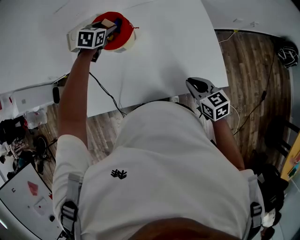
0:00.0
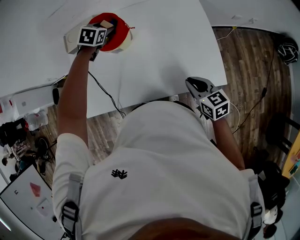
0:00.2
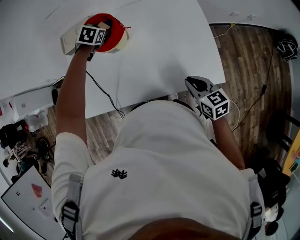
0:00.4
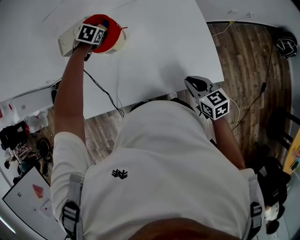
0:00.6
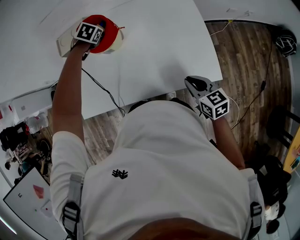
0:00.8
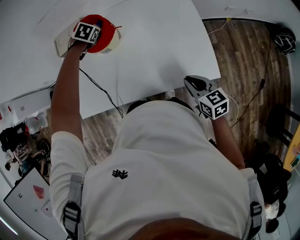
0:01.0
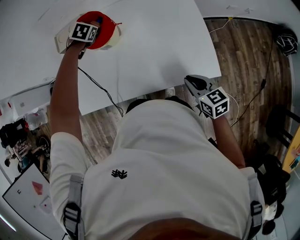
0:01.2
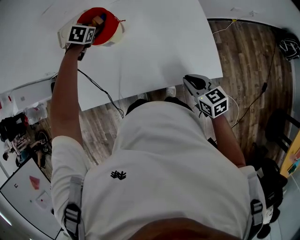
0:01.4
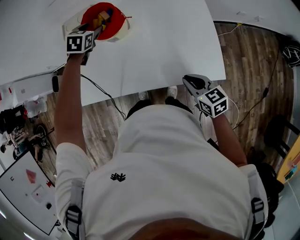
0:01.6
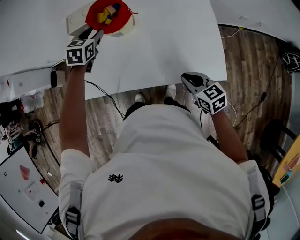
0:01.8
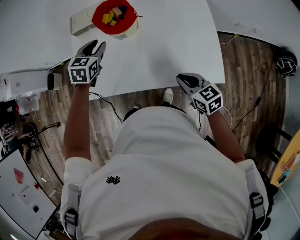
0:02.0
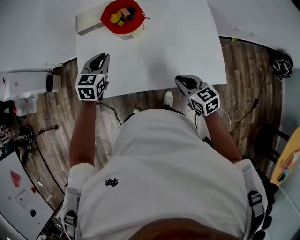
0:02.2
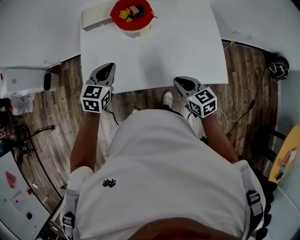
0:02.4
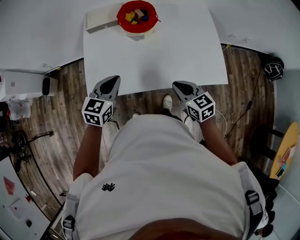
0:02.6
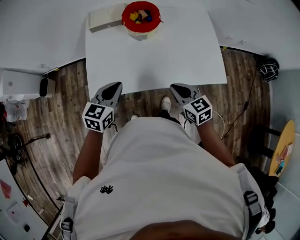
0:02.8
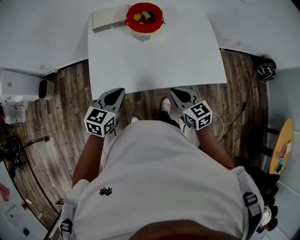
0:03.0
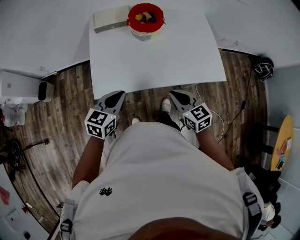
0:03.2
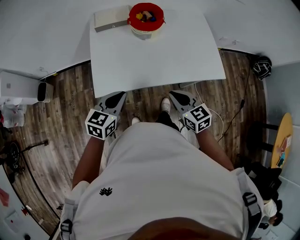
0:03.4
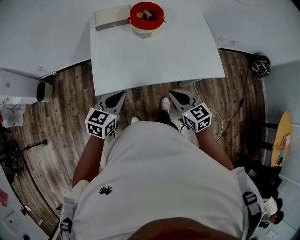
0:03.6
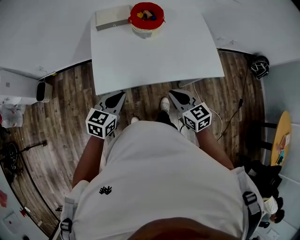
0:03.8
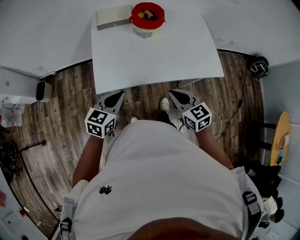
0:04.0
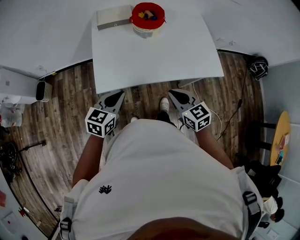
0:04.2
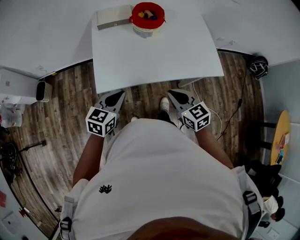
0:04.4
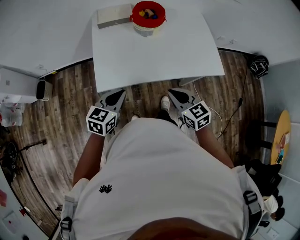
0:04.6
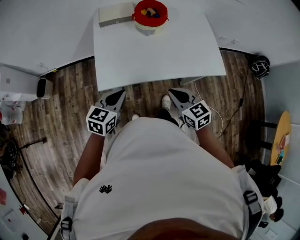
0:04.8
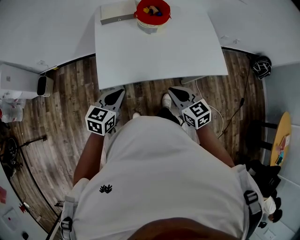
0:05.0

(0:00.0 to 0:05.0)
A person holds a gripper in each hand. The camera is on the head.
0:00.0 - 0:01.6: The left gripper moves about 5 cm.
0:01.6 - 0:03.4: The left gripper moves backward and to the left, approximately 40 cm, changes its angle by some 40 degrees, and closes up. The right gripper heads to the left, covering roughly 25 cm.
0:03.4 - 0:05.0: There are only small adjustments of the grippers.

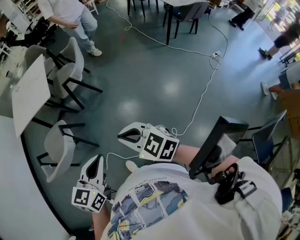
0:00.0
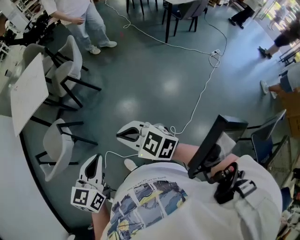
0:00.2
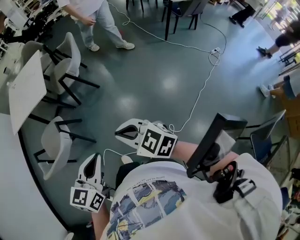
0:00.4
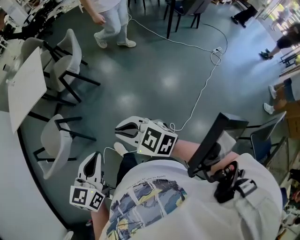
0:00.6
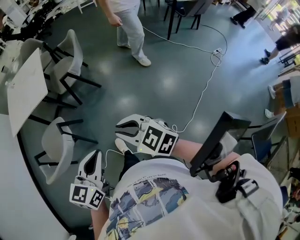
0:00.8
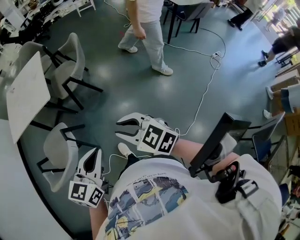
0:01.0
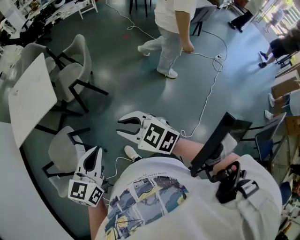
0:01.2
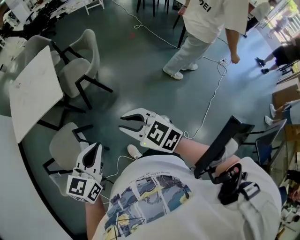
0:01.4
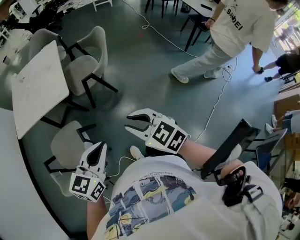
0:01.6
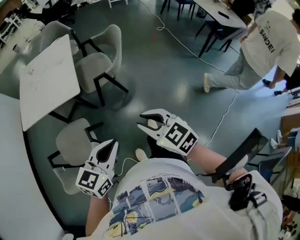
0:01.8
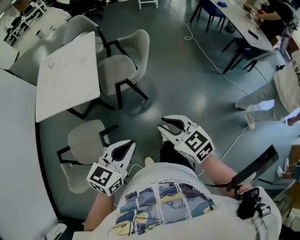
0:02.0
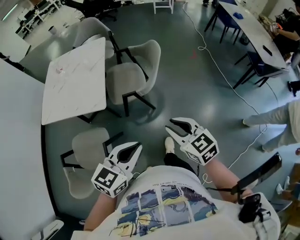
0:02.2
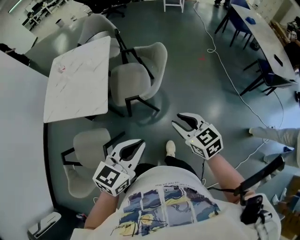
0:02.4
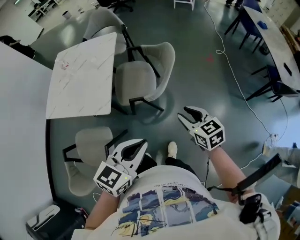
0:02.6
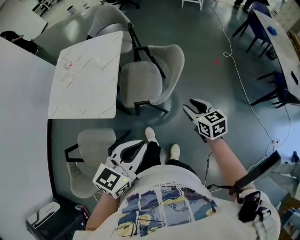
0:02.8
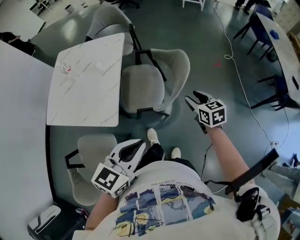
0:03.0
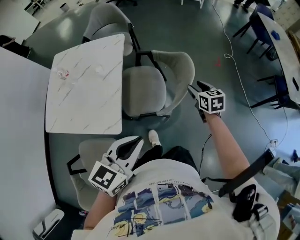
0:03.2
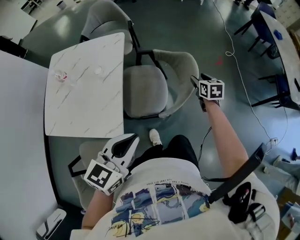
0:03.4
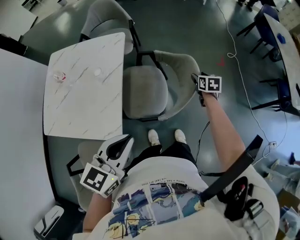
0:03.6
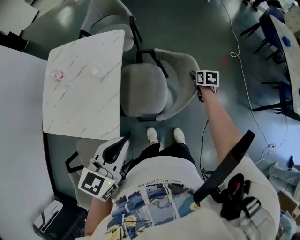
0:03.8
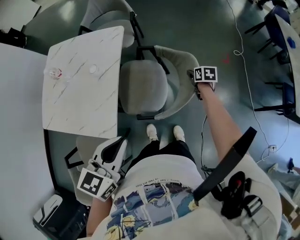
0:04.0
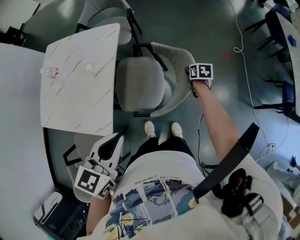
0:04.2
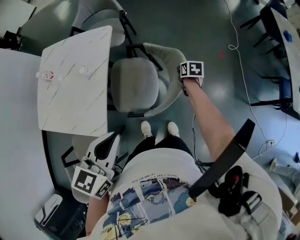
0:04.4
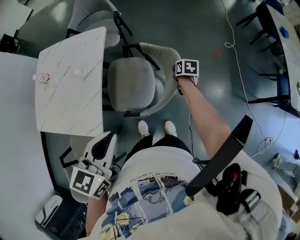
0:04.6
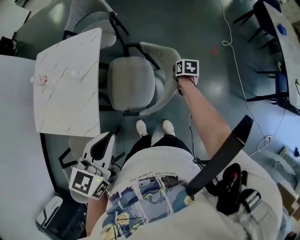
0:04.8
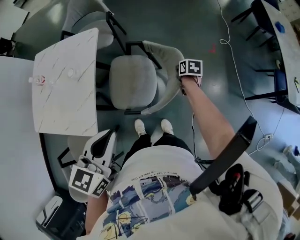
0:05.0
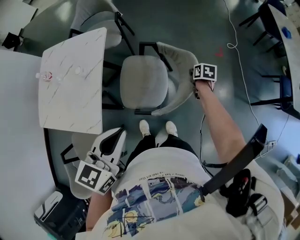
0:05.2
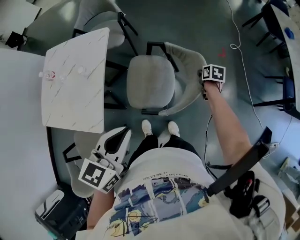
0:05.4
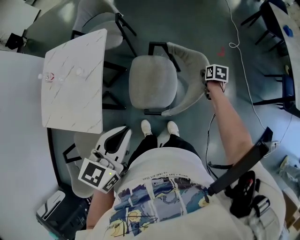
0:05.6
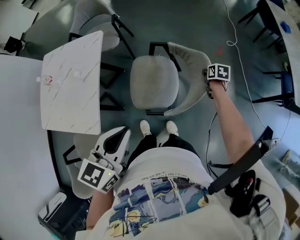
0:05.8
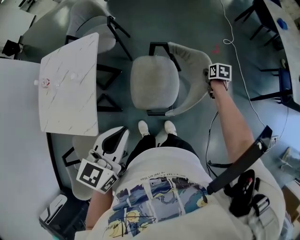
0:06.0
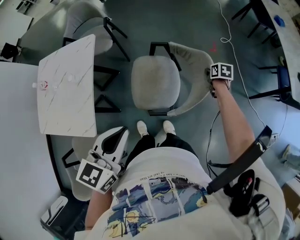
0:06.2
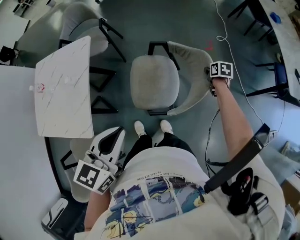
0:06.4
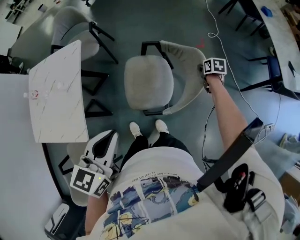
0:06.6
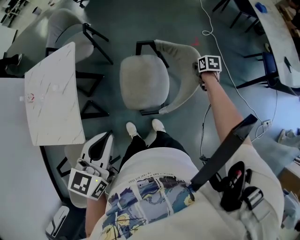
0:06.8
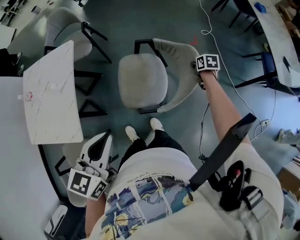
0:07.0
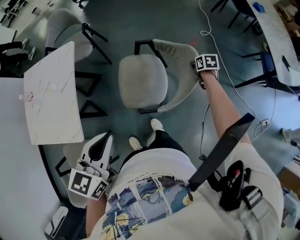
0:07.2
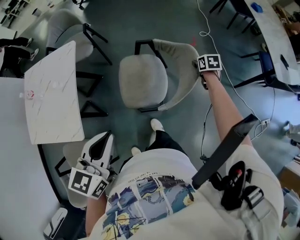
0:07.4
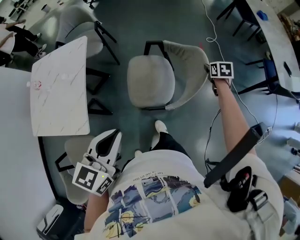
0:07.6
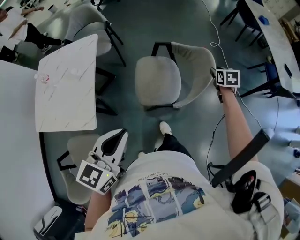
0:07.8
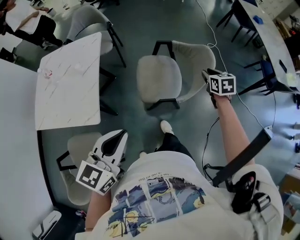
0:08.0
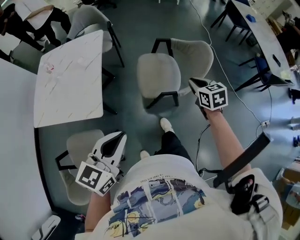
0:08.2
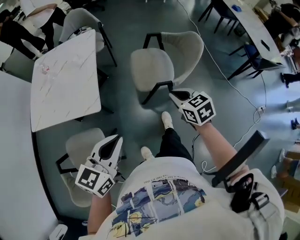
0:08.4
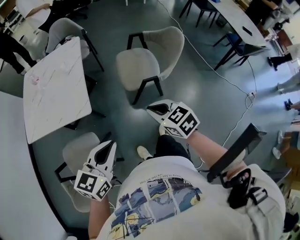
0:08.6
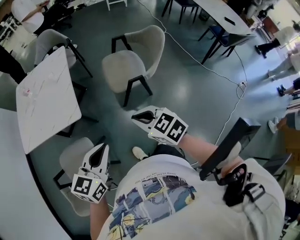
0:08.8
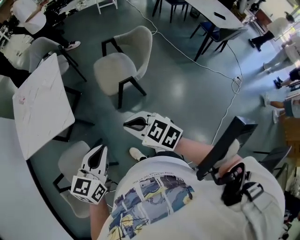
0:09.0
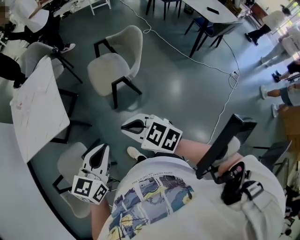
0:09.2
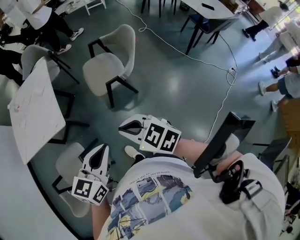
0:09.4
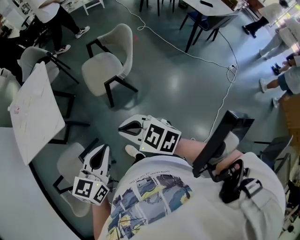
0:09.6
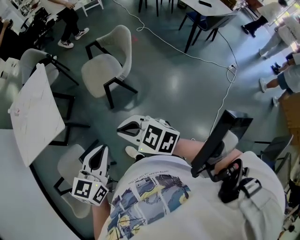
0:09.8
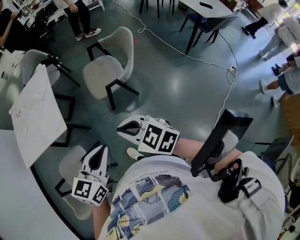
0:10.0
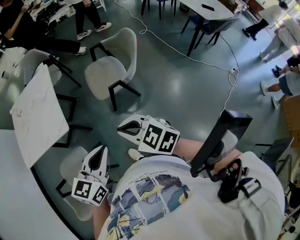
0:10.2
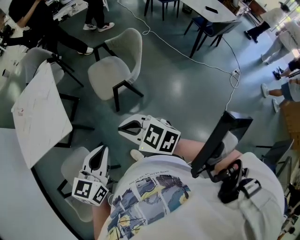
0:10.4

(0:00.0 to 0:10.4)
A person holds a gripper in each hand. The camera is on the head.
0:00.0 - 0:01.4: The grippers both shift forward and to the left by about 25 cm.
0:01.4 - 0:03.0: The two grippers travel together, forward, roughly 50 cm.
0:03.0 - 0:04.4: The right gripper moves forward and downward, approximately 30 cm, and rotates about 30 degrees. Meanwhile the left gripper is displaced forward by about 15 cm.
0:04.4 - 0:06.0: The right gripper travels to the right by some 25 cm; the left gripper moves to the right, approximately 15 cm.
0:06.0 - 0:07.4: The right gripper goes some 5 cm to the right.
0:07.4 - 0:09.0: The right gripper moves backward, to the left and upward, about 80 cm, swivels some 50 degrees, and closes its fingers. Meanwhile the left gripper goes about 35 cm backward.
0:09.0 - 0:10.4: The left gripper is displaced to the right by some 5 cm.

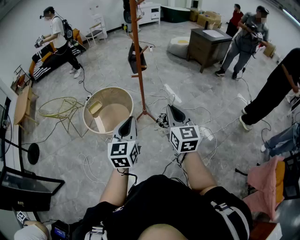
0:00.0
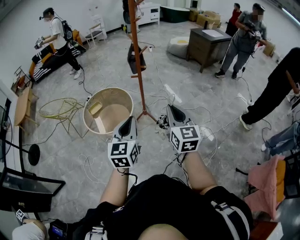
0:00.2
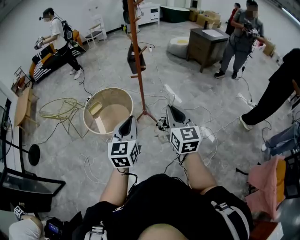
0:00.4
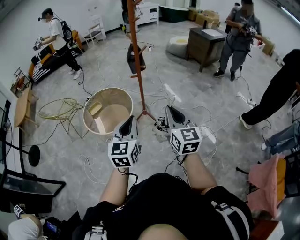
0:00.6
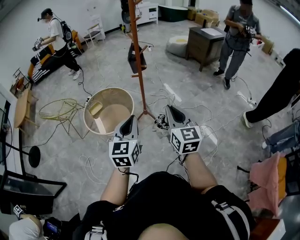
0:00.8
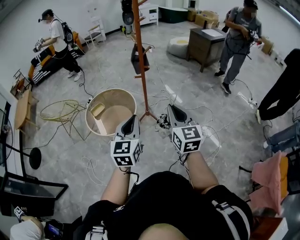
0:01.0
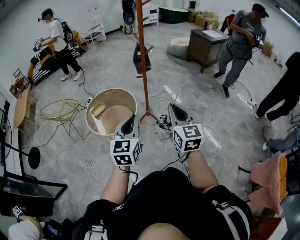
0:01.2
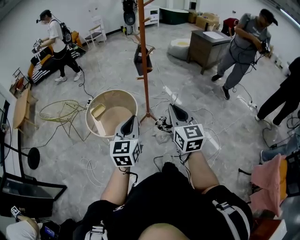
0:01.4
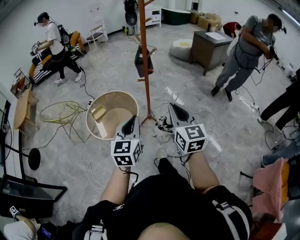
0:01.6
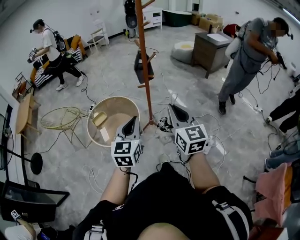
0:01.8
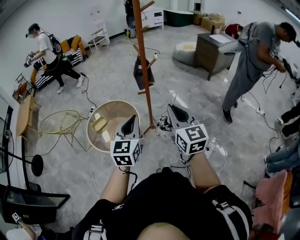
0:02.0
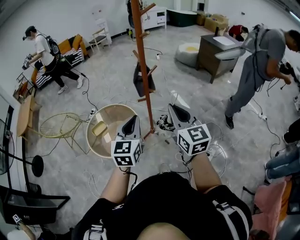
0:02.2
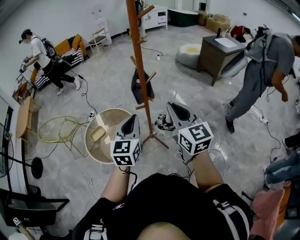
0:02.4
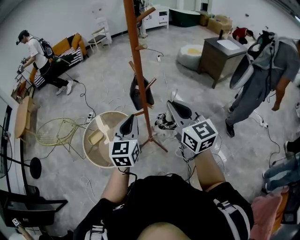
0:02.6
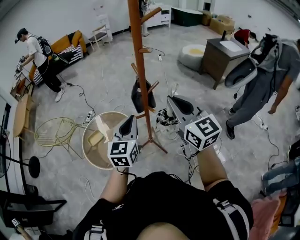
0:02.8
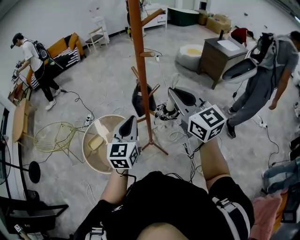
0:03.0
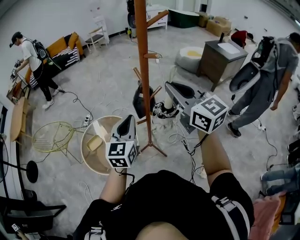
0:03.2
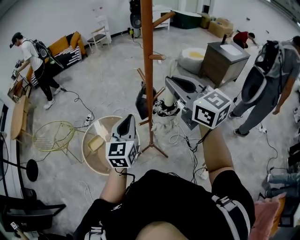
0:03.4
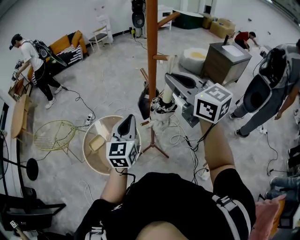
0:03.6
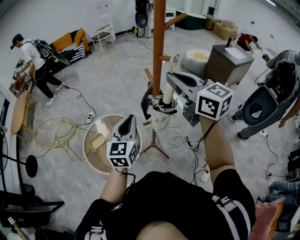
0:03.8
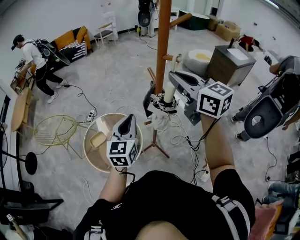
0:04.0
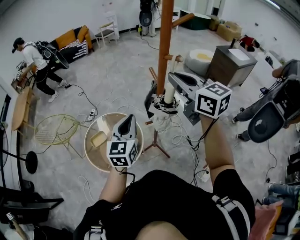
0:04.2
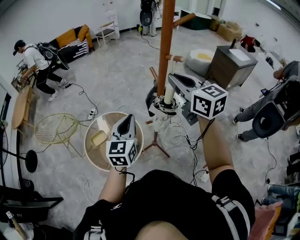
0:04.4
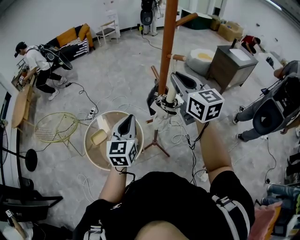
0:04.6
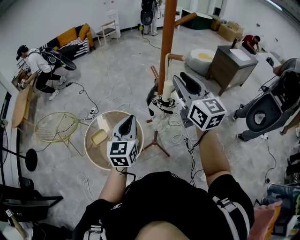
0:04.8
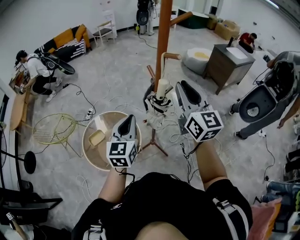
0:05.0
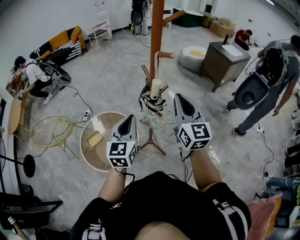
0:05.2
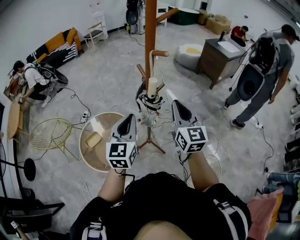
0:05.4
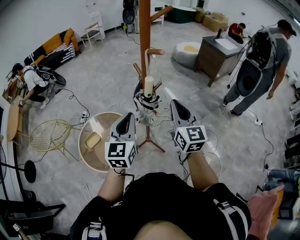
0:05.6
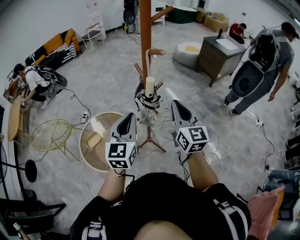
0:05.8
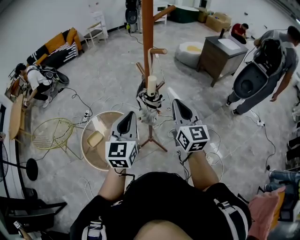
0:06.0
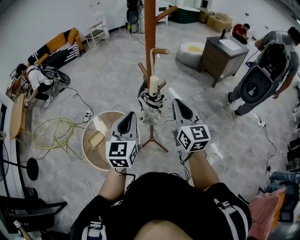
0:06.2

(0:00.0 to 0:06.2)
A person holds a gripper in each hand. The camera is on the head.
0:00.0 - 0:01.6: The grippers both shift to the left and forward by roughly 10 cm.
0:01.6 - 0:03.2: Both grippers are carried forward, approximately 50 cm. The right gripper changes its angle by some 30 degrees.
0:03.2 - 0:04.6: The left gripper moves to the left, roughly 5 cm. Meanwhile the right gripper is displaced forward by approximately 10 cm.
0:04.6 - 0:06.2: The right gripper travels downward, backward and to the right by some 15 cm, while the left gripper moves about 5 cm.

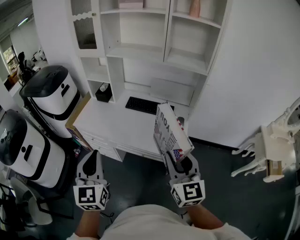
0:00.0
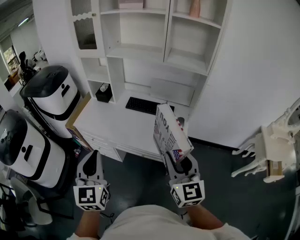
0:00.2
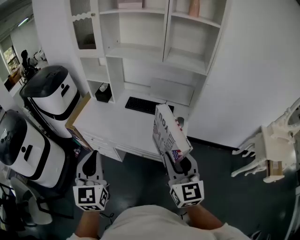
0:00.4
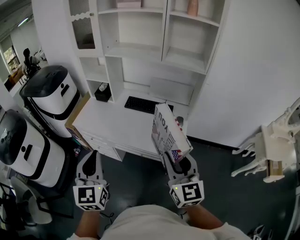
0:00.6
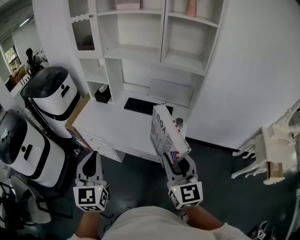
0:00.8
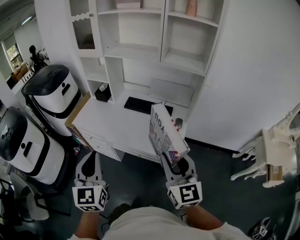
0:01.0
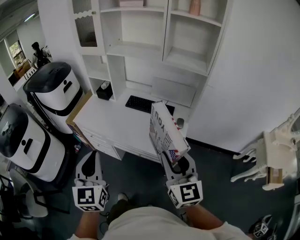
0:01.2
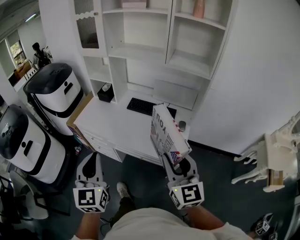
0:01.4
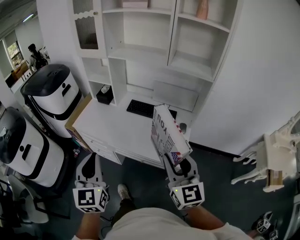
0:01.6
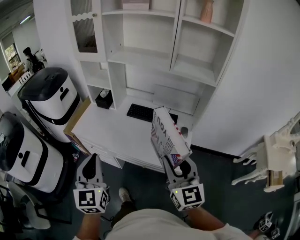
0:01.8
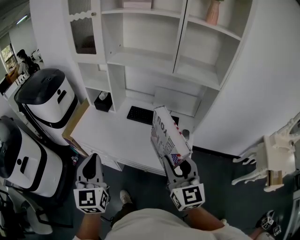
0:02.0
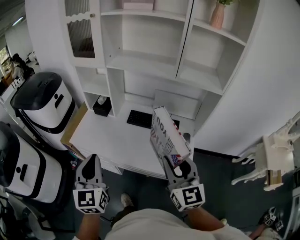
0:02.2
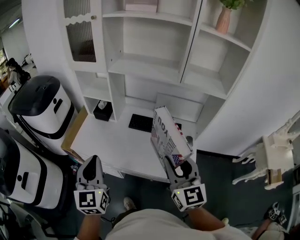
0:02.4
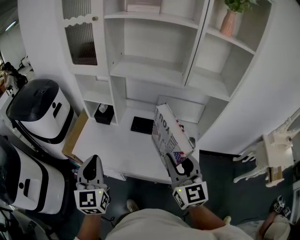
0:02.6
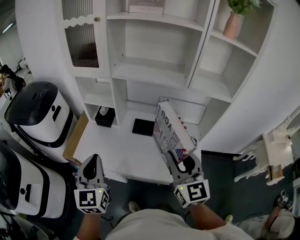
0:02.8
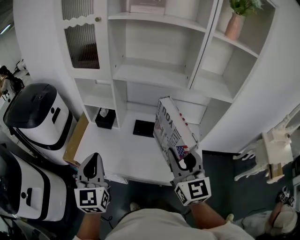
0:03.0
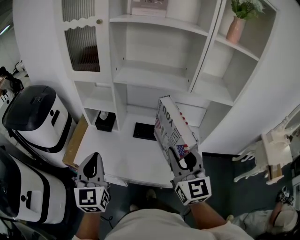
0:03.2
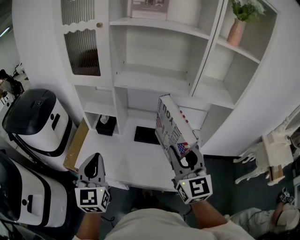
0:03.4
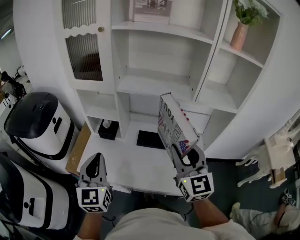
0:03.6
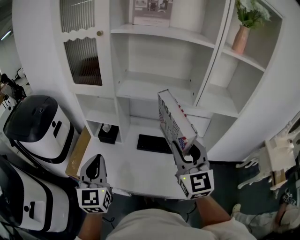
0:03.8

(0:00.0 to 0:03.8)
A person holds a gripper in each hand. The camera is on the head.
0:00.0 - 0:01.2: There are only small adjustments of the grippers.
0:01.2 - 0:02.6: Both grippers travel together forward and to the left, some 25 cm.
0:02.6 - 0:03.8: The left gripper goes approximately 10 cm forward. Meanwhile the right gripper shifts approximately 15 cm forward and upward.
